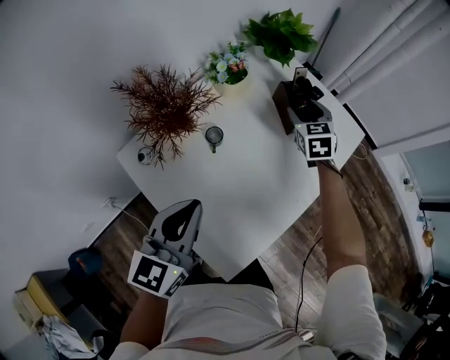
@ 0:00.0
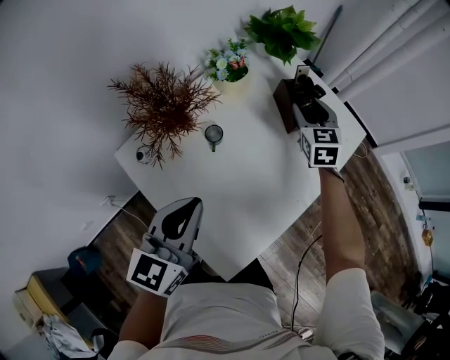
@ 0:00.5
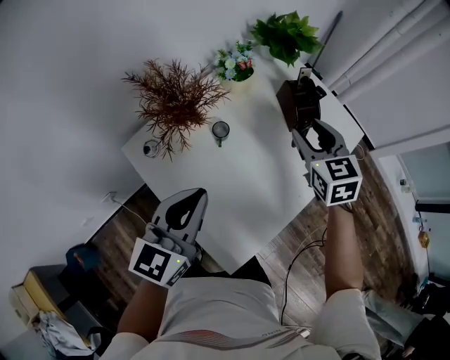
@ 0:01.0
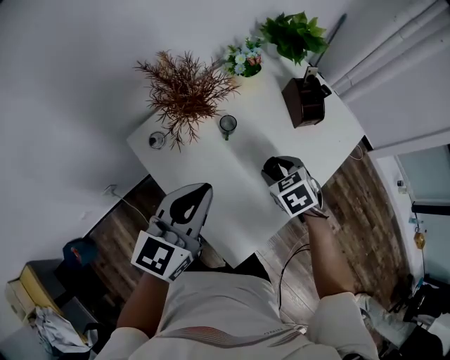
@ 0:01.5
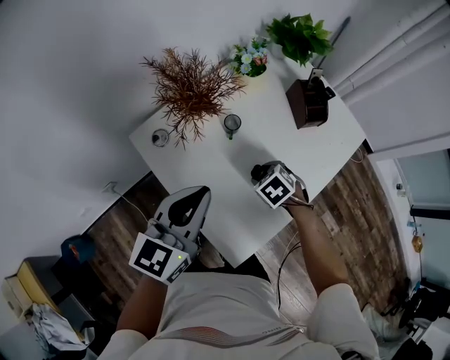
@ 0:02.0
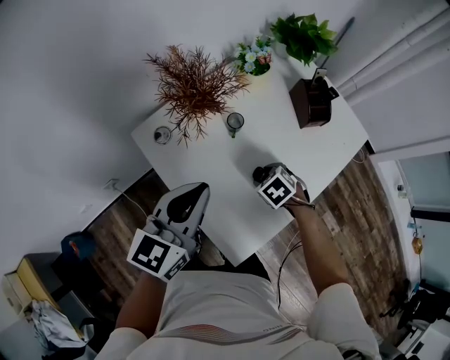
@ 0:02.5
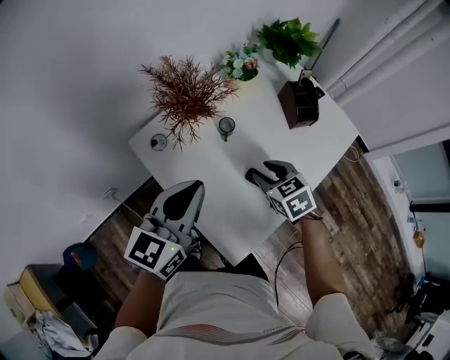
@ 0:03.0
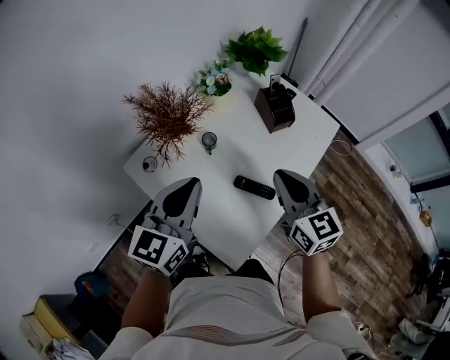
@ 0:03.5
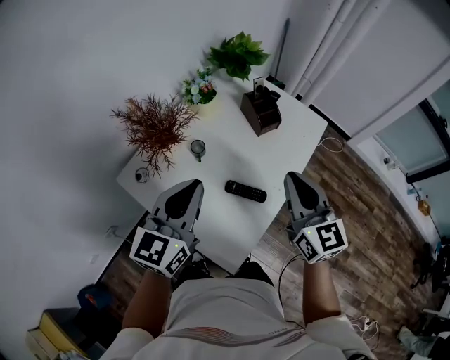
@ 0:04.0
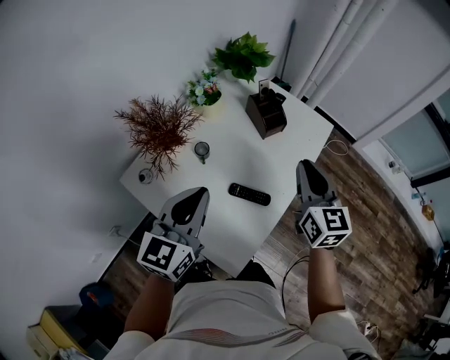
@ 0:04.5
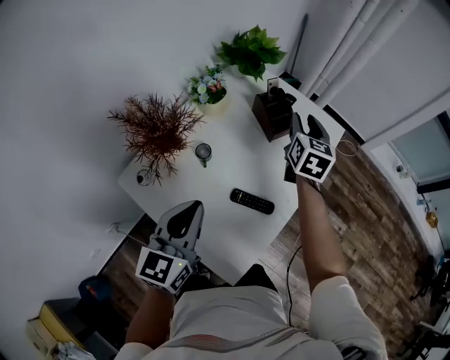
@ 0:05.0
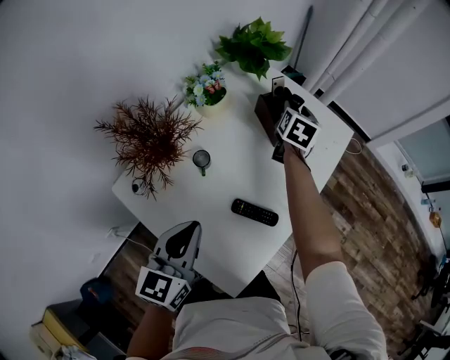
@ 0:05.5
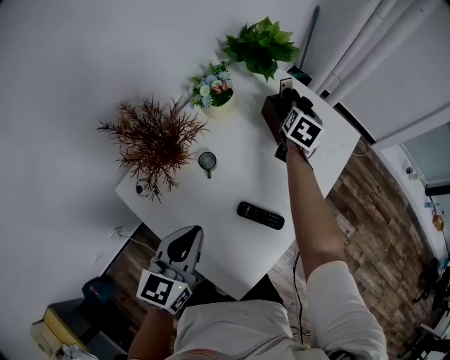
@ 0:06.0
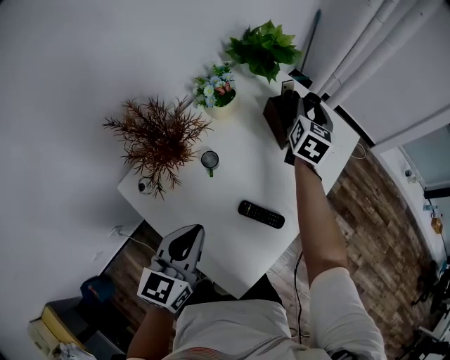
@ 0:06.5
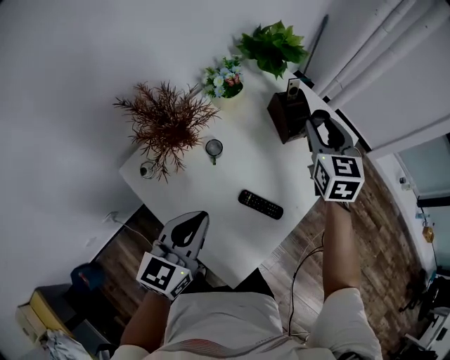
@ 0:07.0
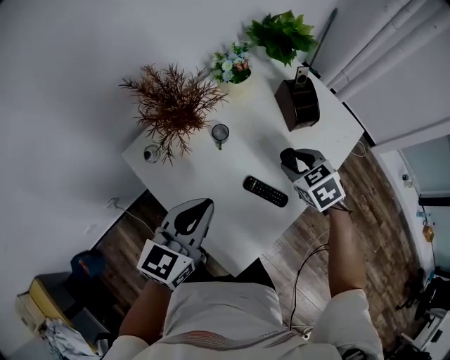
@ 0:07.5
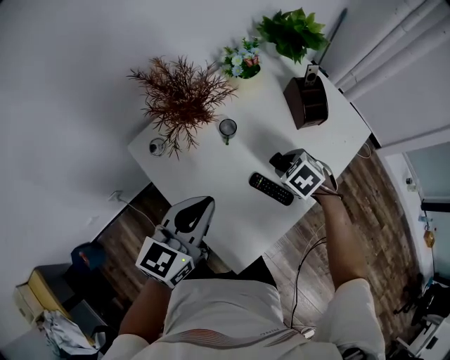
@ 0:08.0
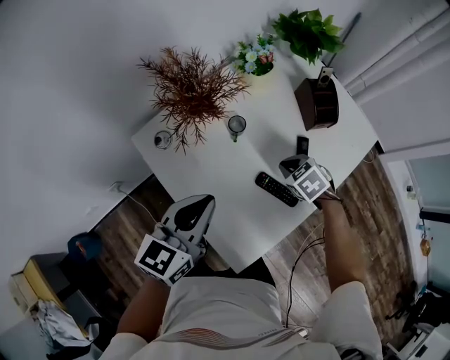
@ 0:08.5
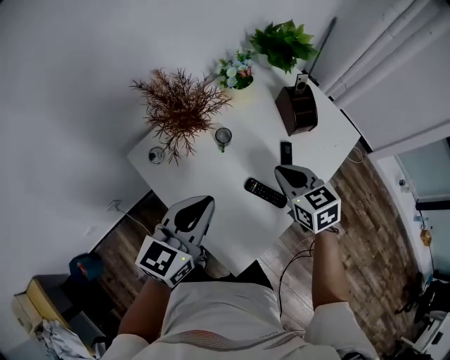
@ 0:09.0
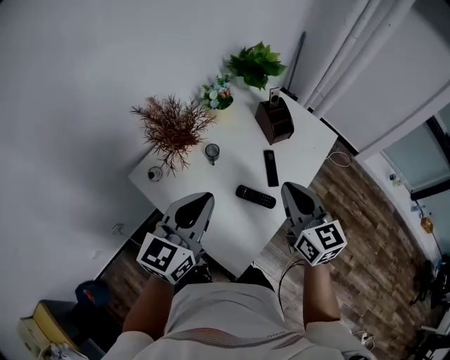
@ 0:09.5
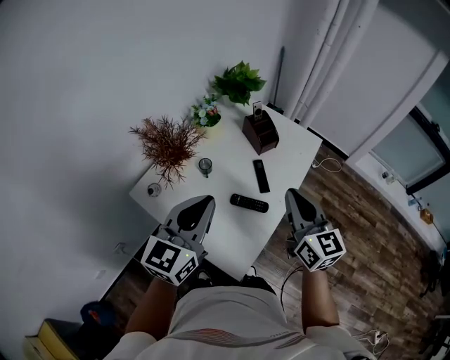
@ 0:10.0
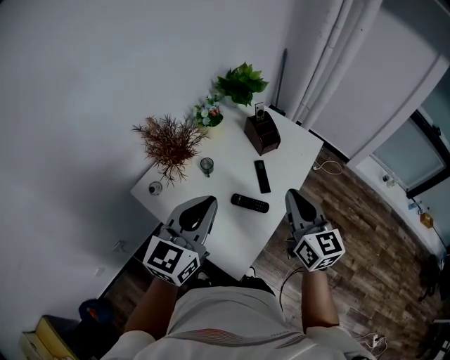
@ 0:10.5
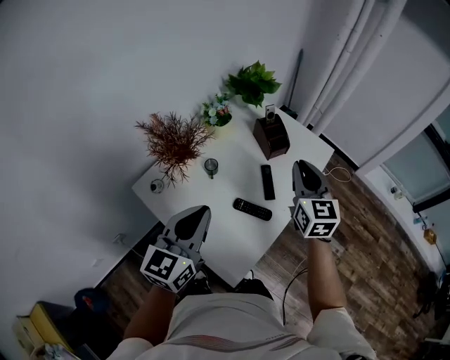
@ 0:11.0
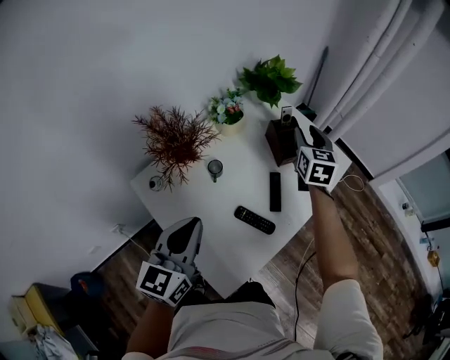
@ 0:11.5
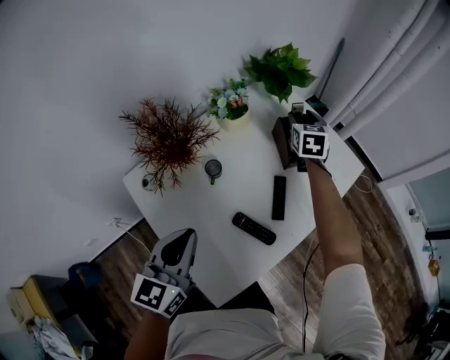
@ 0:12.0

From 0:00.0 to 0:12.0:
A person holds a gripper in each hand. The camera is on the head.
From 0:00.0 to 0:02.0: The right gripper is displaced backward, to the left and downward by some 30 cm, and tips its fingers downward by roughly 40 degrees.
From 0:02.0 to 0:04.0: The right gripper moves upward, about 30 cm, points its fingers about 70 degrees further upward, and closes. Meanwhile the left gripper travels upward and to the right by roughly 10 cm.
From 0:04.0 to 0:06.0: The right gripper heads forward and downward, covering roughly 40 cm, rotates some 50 degrees, and opens up, while the left gripper moves downward, some 10 cm.
From 0:06.0 to 0:08.0: The right gripper changes place by some 30 cm, and points its fingers approximately 40 degrees further downward.
From 0:08.0 to 0:10.0: The right gripper shifts roughly 30 cm upward and backward, points its fingers roughly 70 degrees further upward, and closes its fingers, while the left gripper is displaced upward by roughly 15 cm.
From 0:10.0 to 0:12.0: The left gripper travels downward by roughly 10 cm, and changes its angle by some 30 degrees; the right gripper shifts about 40 cm forward, changes its angle by approximately 30 degrees, and opens up.

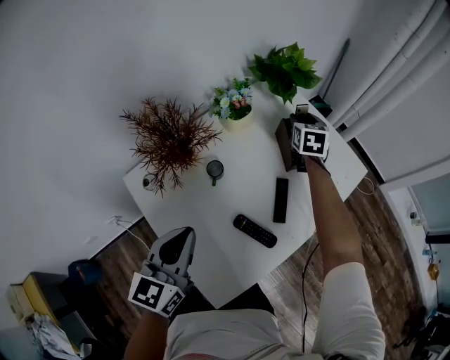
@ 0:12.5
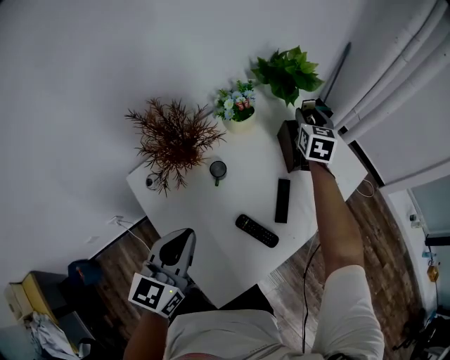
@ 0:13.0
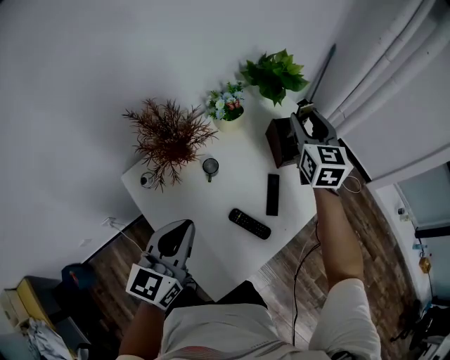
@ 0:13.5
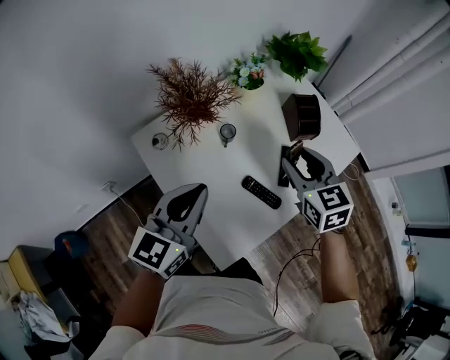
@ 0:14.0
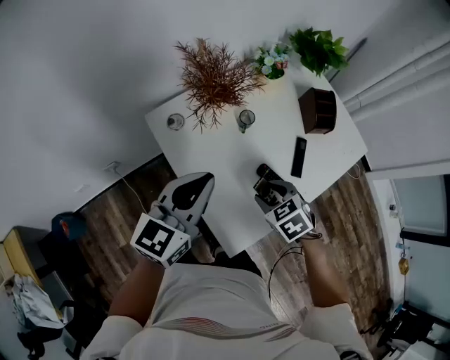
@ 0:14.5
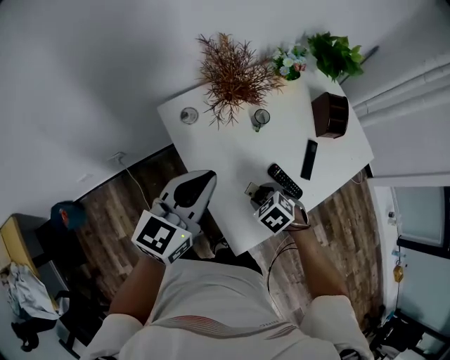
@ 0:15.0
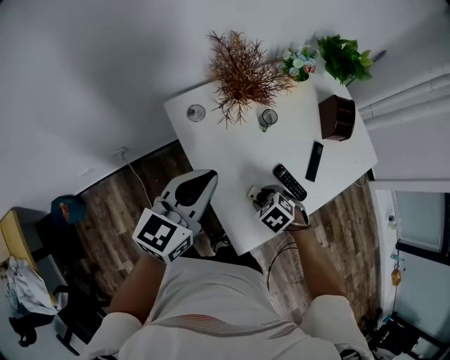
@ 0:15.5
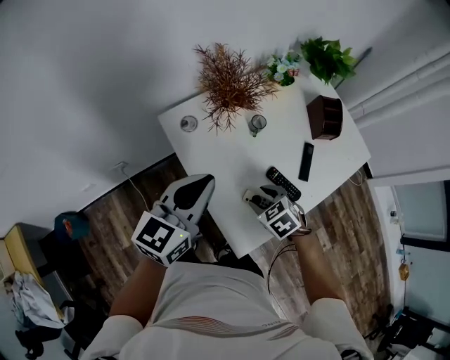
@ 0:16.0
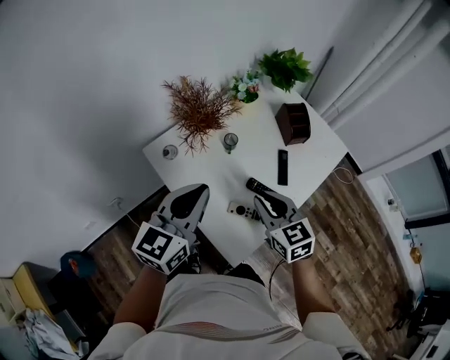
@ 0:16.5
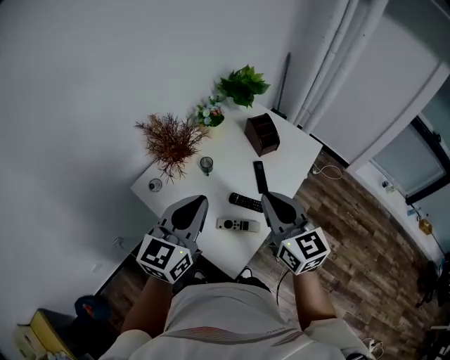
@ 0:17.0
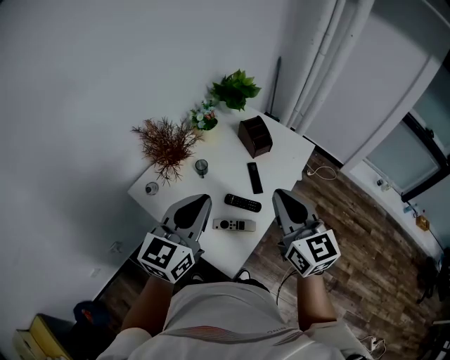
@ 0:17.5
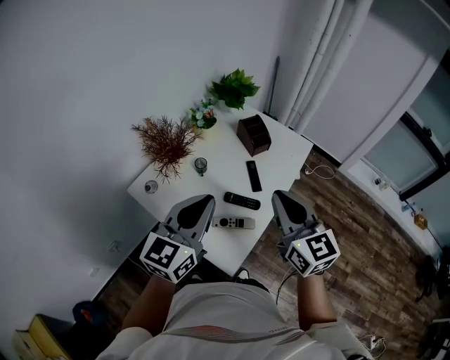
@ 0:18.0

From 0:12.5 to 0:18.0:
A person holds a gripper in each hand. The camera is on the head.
From 0:12.5 to 0:14.5: The right gripper is displaced backward and to the left by roughly 50 cm, and tips its fingers downward by roughly 30 degrees. Meanwhile the left gripper shifts roughly 5 cm to the left and backward.
From 0:16.0 to 0:18.0: The right gripper moves upward, about 30 cm, points its fingers some 60 degrees further upward, and closes its fingers. The left gripper changes place by approximately 15 cm, and turns by roughly 20 degrees.

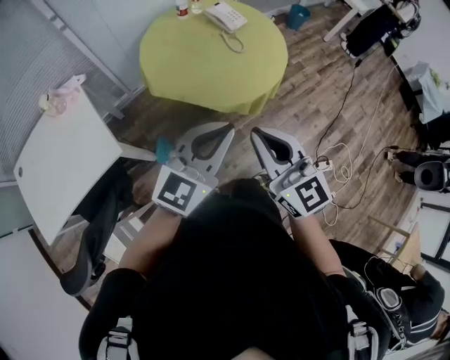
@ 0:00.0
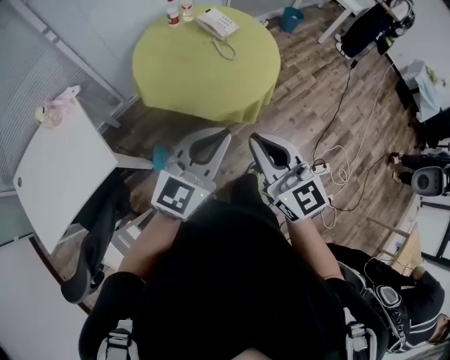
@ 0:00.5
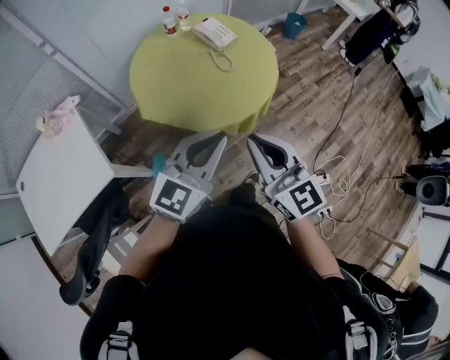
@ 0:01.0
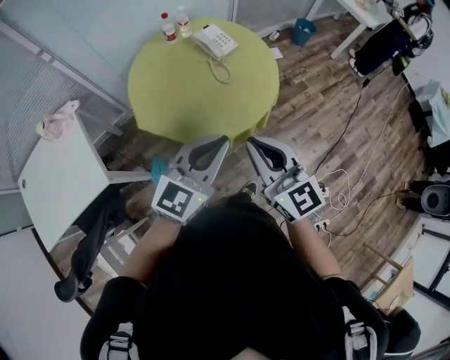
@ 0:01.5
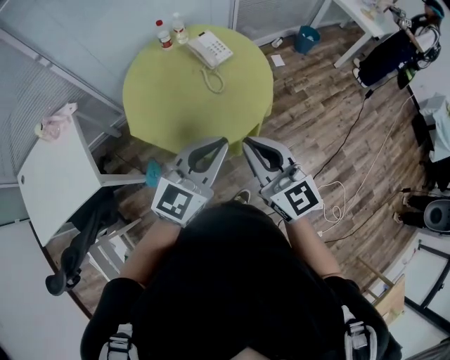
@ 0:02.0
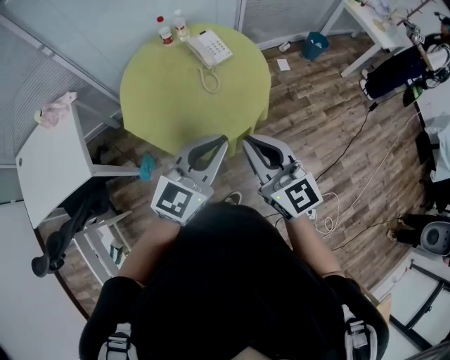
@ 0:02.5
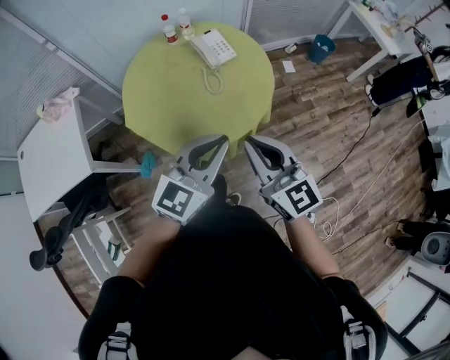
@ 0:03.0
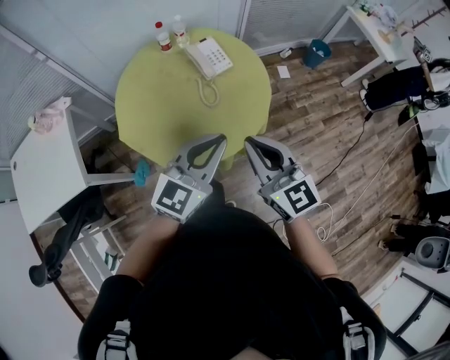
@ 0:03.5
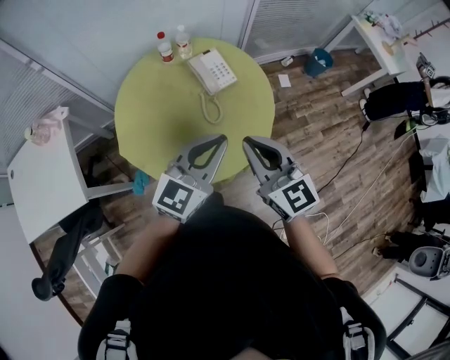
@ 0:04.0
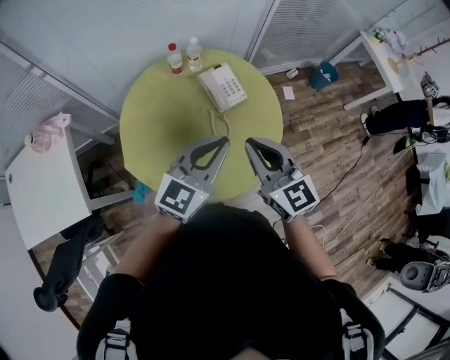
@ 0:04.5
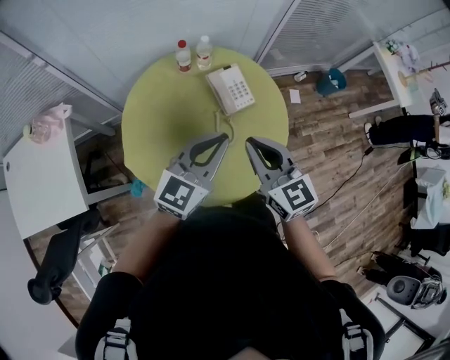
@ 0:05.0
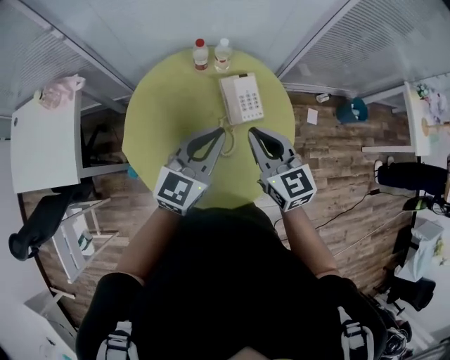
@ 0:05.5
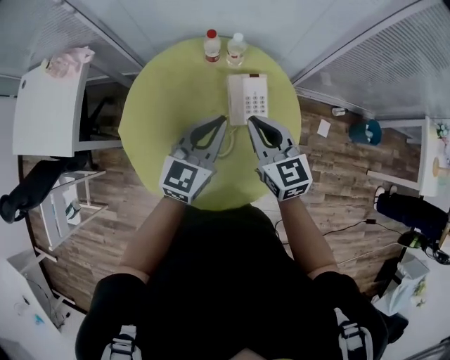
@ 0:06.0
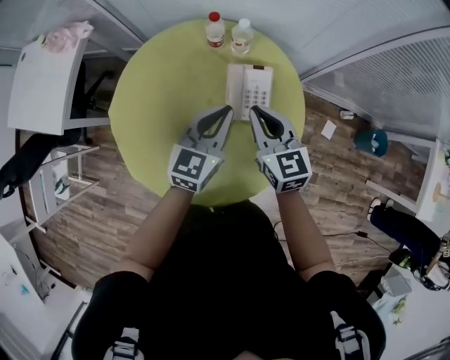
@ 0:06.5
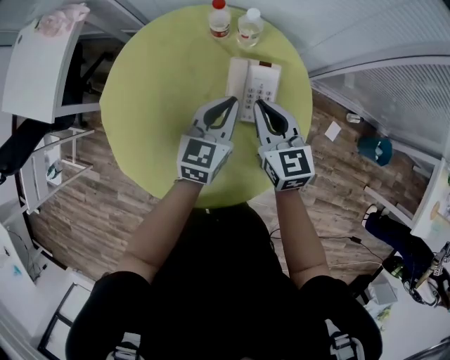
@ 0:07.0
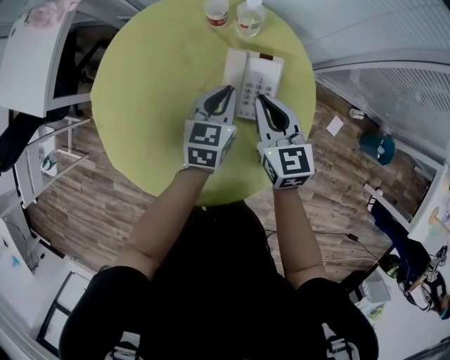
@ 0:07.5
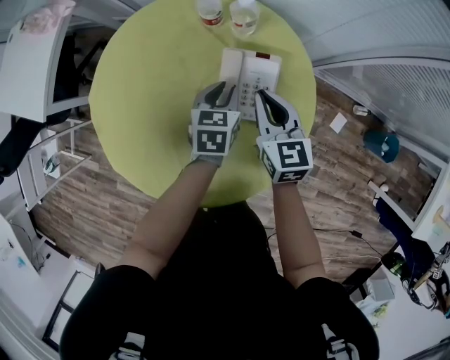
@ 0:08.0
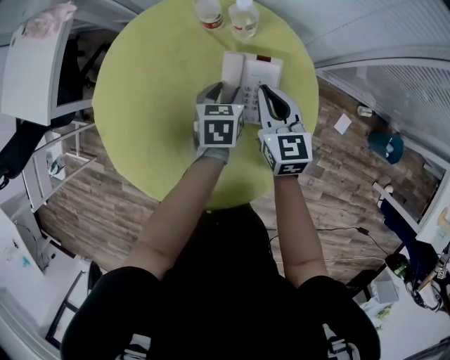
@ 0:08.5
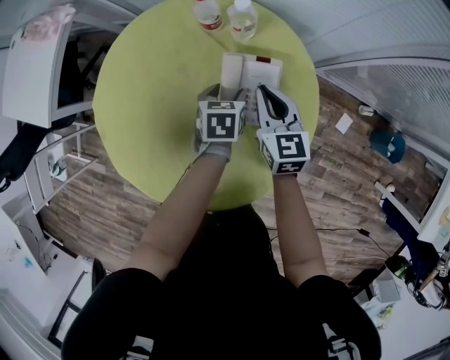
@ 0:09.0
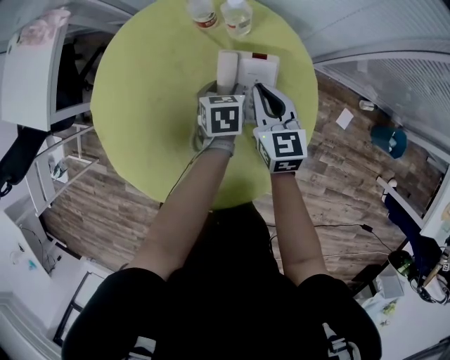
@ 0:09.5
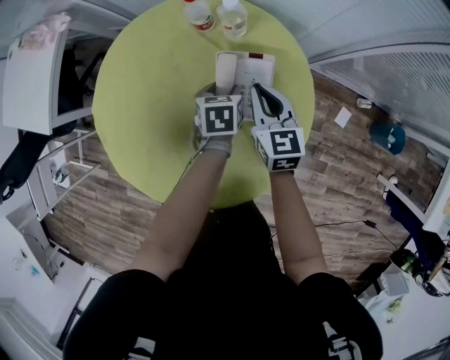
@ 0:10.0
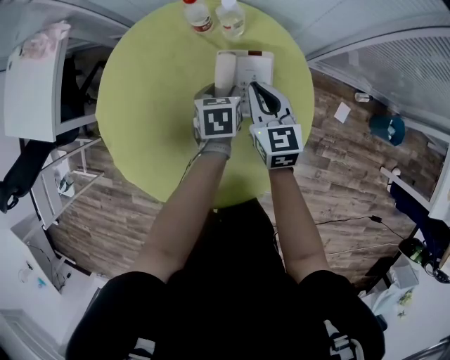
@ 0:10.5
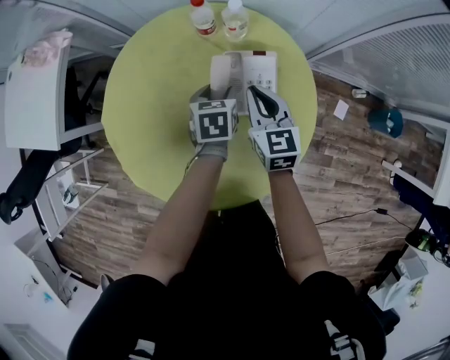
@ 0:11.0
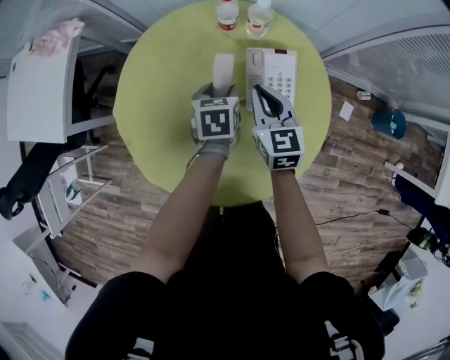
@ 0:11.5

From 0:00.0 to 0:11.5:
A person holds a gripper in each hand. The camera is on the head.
From 0:00.0 to 0:02.0: The left gripper moves to the right and forward, about 25 cm, while the right gripper goes about 25 cm forward and to the right.
From 0:02.0 to 0:04.0: Both grippers travel together forward, about 20 cm.
From 0:04.0 to 0:06.0: The left gripper ends up approximately 30 cm from where it was, and swivels approximately 40 degrees. Meanwhile the right gripper ends up some 30 cm from where it was, and swivels roughly 30 degrees.
From 0:06.0 to 0:07.5: Both grippers travel together downward and forward, roughly 20 cm. The left gripper swivels approximately 30 degrees.
From 0:07.5 to 0:09.5: The left gripper heads downward, covering some 10 cm, changes its angle by about 30 degrees, and opens its fingers. Meanwhile the right gripper travels downward by approximately 5 cm.
From 0:09.5 to 0:11.5: The two grippers go some 10 cm to the left and upward.
